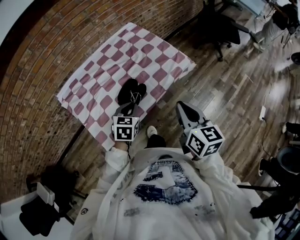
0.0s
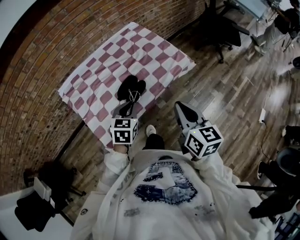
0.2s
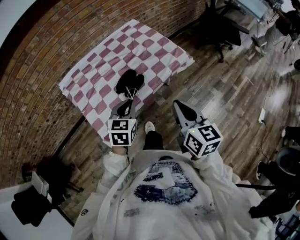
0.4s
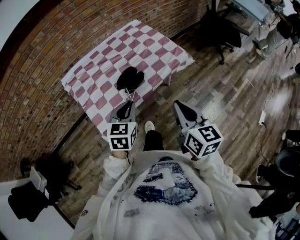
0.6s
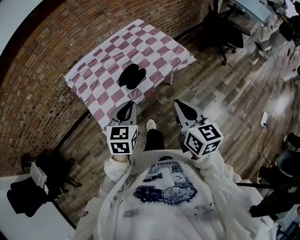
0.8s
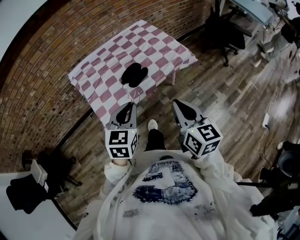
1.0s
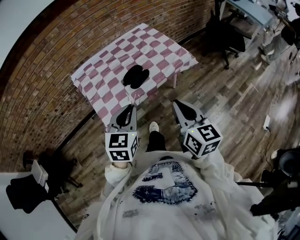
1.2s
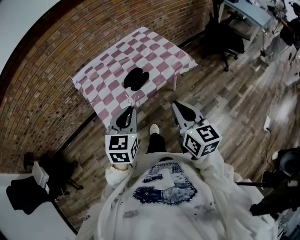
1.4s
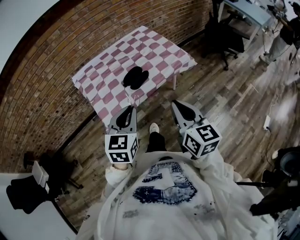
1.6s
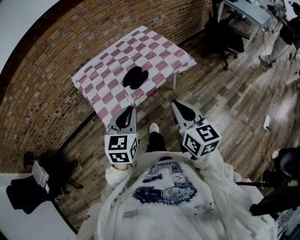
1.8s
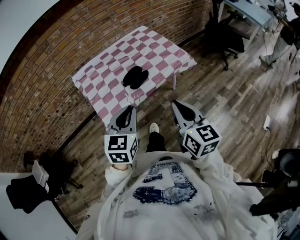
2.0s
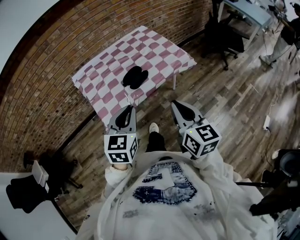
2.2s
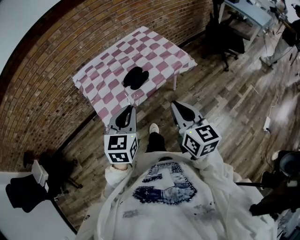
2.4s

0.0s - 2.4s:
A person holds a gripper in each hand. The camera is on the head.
0.0s - 1.2s: The right gripper is displaced backward by about 15 cm. The left gripper moves backward and upward, roughly 25 cm, and changes its angle by some 20 degrees.
1.2s - 2.4s: The grippers stay close to where they were, moving slightly.

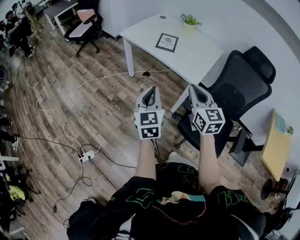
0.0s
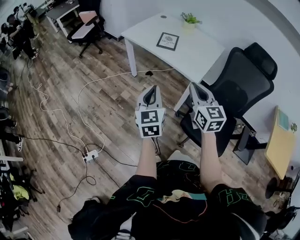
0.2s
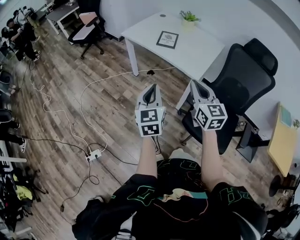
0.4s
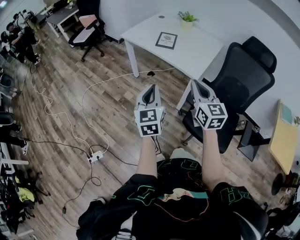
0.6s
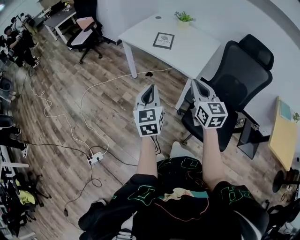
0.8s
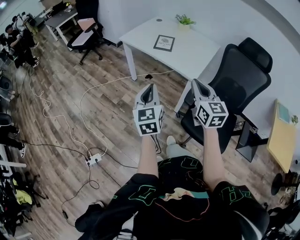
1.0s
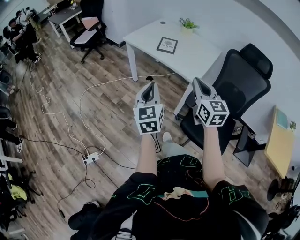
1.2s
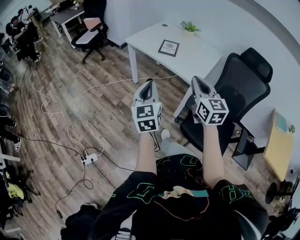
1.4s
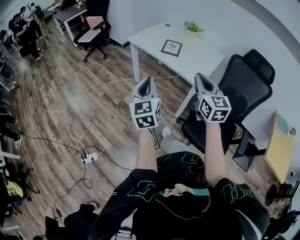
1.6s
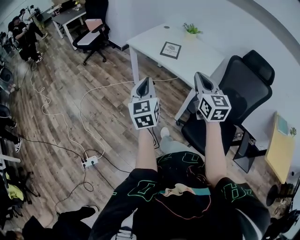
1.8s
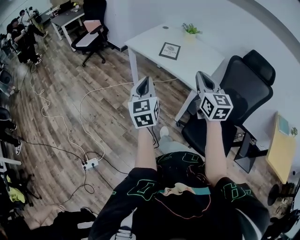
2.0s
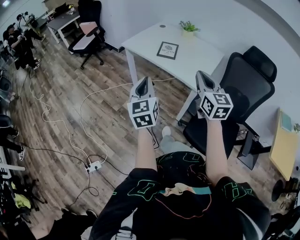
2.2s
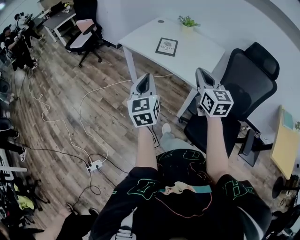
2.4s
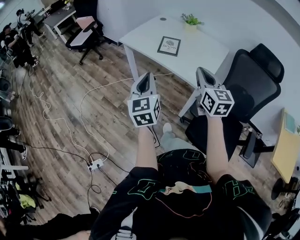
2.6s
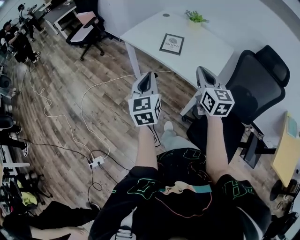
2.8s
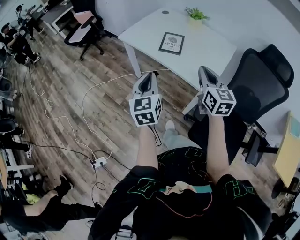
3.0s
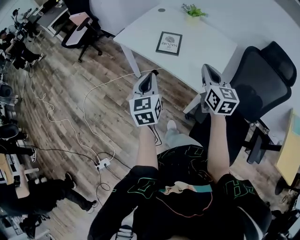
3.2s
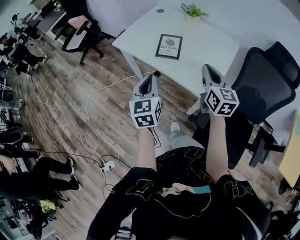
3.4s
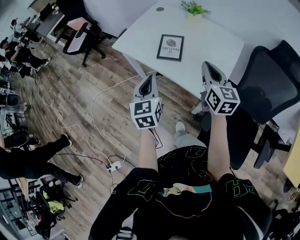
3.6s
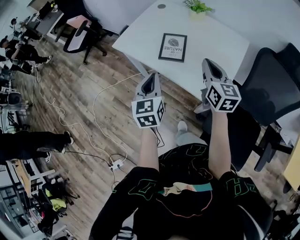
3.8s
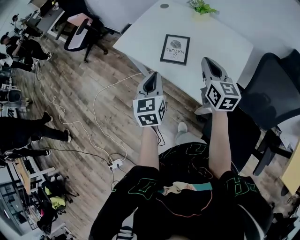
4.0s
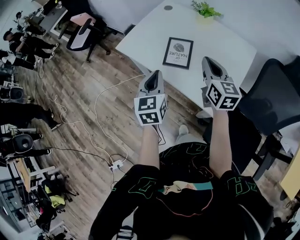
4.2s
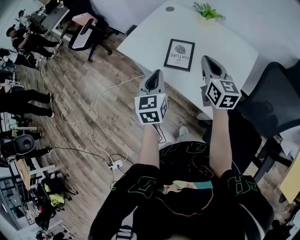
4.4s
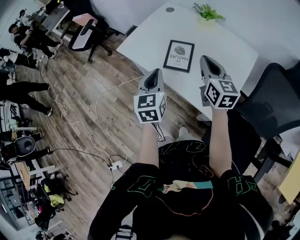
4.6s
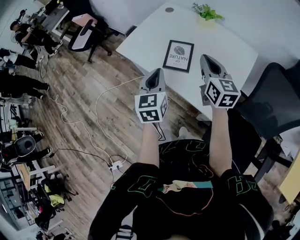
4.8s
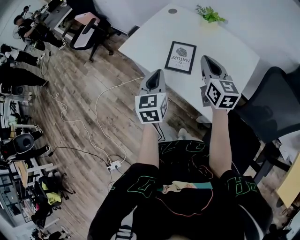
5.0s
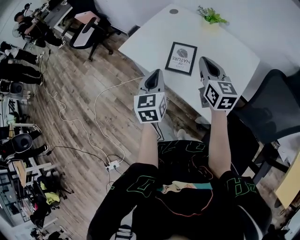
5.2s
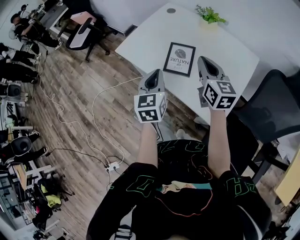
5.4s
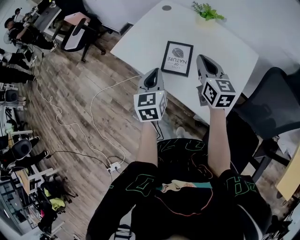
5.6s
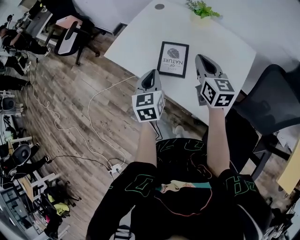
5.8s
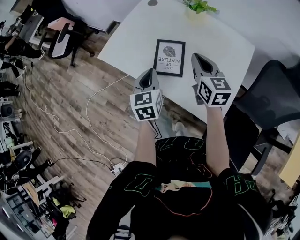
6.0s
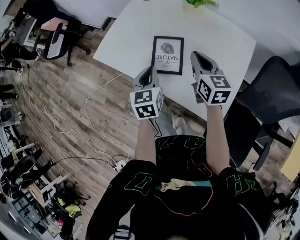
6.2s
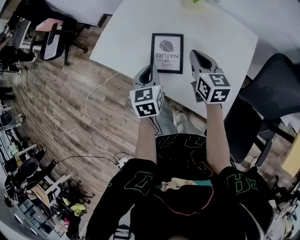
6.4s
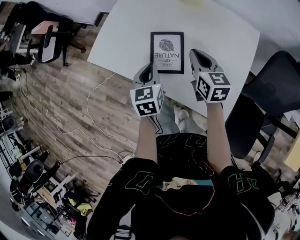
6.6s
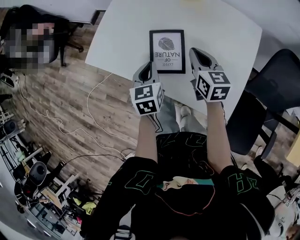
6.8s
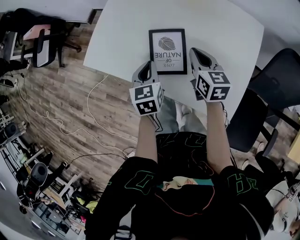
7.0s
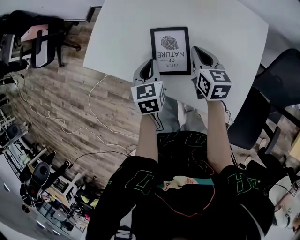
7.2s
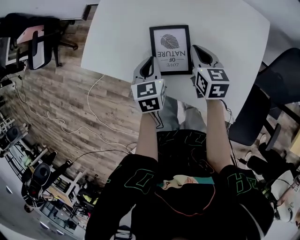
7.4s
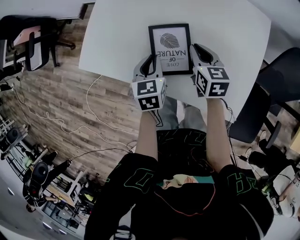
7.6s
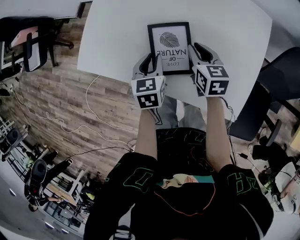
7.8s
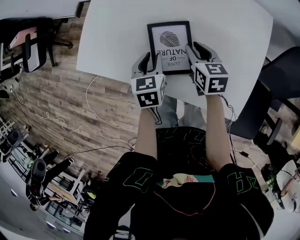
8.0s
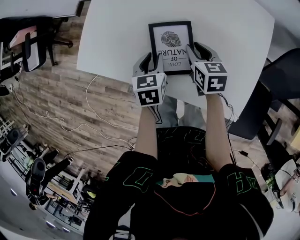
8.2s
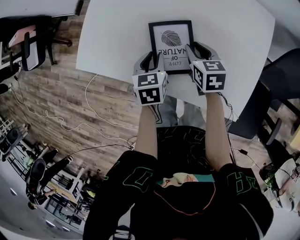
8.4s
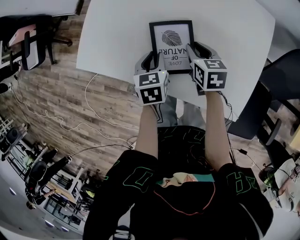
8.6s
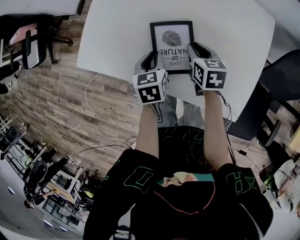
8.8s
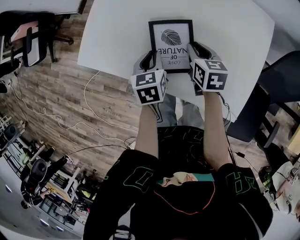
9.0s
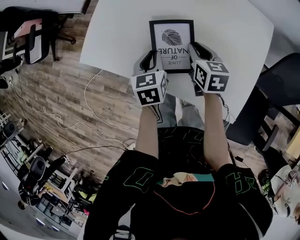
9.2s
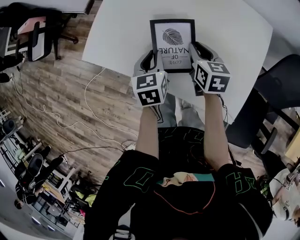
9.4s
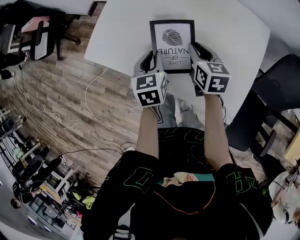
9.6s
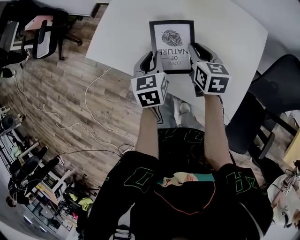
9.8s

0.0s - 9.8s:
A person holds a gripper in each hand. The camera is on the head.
0.0s - 1.4s: The left gripper ends up some 5 cm from where it was, while the right gripper changes place by some 5 cm.
1.4s - 2.8s: The two grippers go approximately 20 cm forward.
2.8s - 4.2s: The grippers both shift forward by approximately 25 cm.
4.2s - 5.6s: The two grippers go roughly 5 cm forward.
5.6s - 7.0s: The grippers both shift downward and forward by roughly 20 cm. The left gripper turns by some 20 degrees, while the right gripper changes its angle by about 20 degrees.
7.0s - 8.4s: The two grippers go roughly 5 cm downward. The left gripper opens up. Meanwhile the right gripper opens.
8.4s - 9.8s: The grippers both shift upward by about 10 cm.

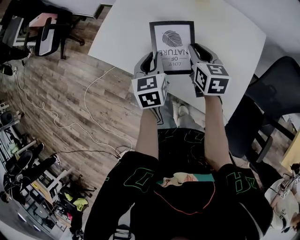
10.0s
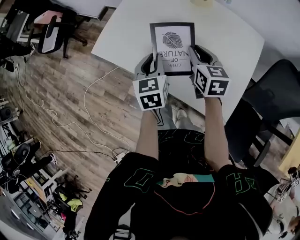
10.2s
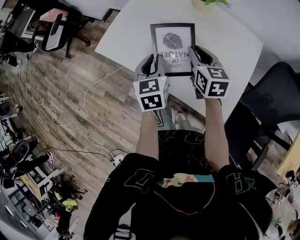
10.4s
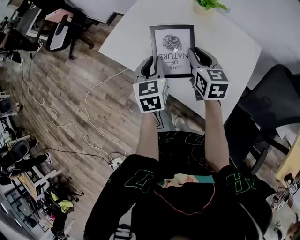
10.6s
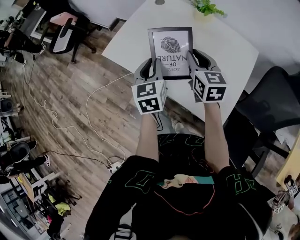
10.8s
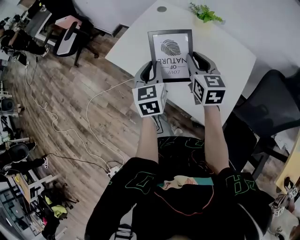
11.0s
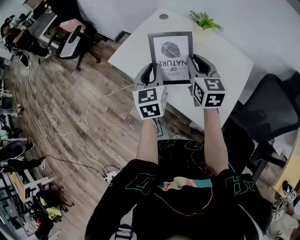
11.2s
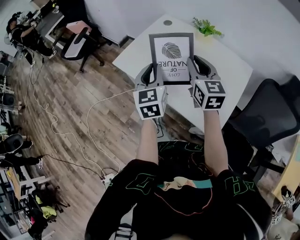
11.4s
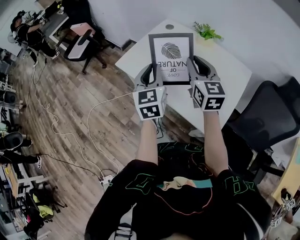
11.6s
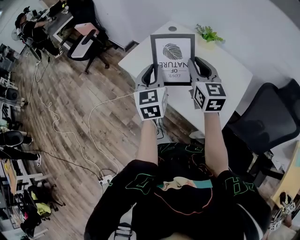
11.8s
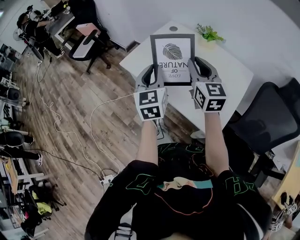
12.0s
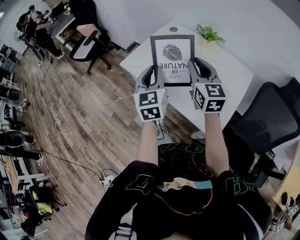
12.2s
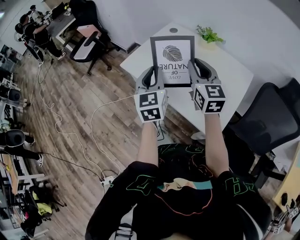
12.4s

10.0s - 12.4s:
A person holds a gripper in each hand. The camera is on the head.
10.0s - 11.2s: The right gripper is displaced upward by about 15 cm, and turns by about 20 degrees; the left gripper travels upward and backward by approximately 15 cm, and turns by roughly 20 degrees.
11.2s - 12.4s: The grippers both shift upward and backward by some 10 cm.

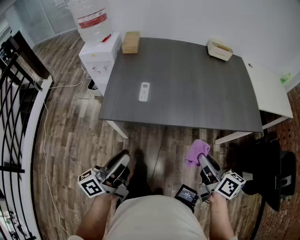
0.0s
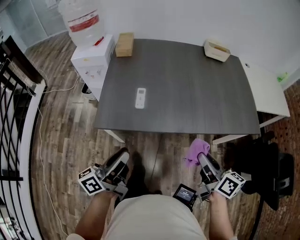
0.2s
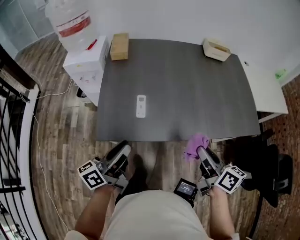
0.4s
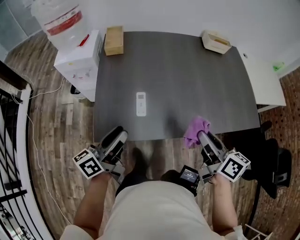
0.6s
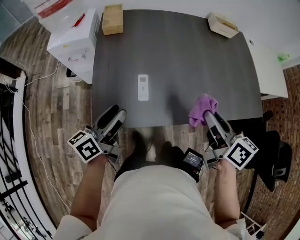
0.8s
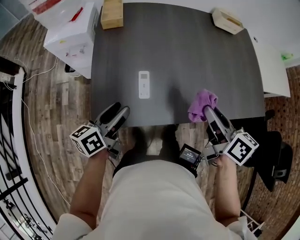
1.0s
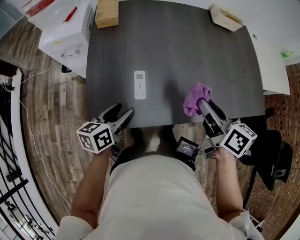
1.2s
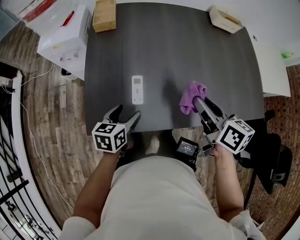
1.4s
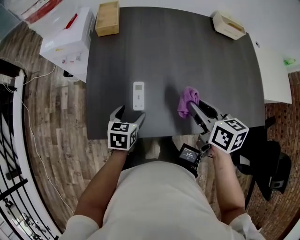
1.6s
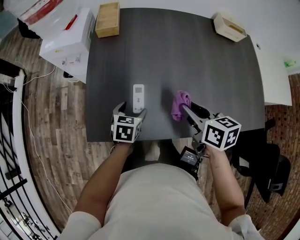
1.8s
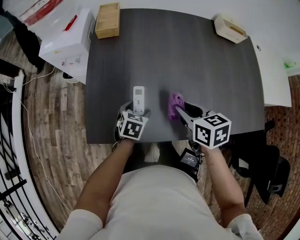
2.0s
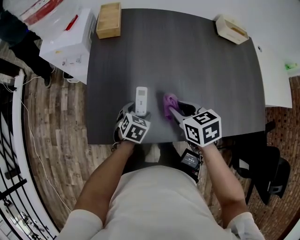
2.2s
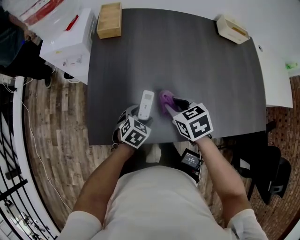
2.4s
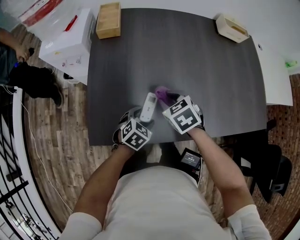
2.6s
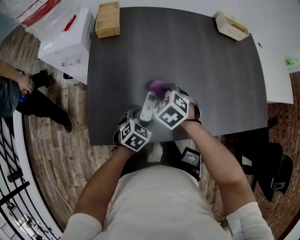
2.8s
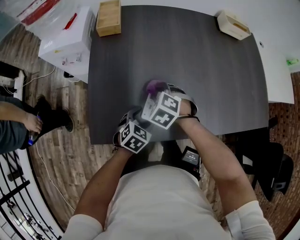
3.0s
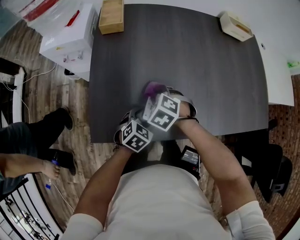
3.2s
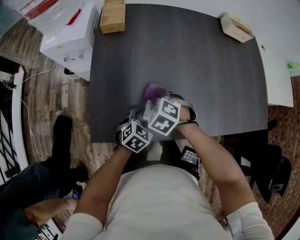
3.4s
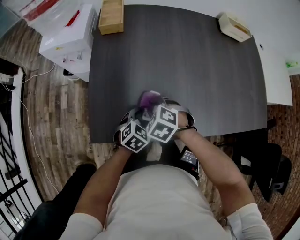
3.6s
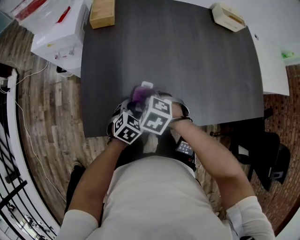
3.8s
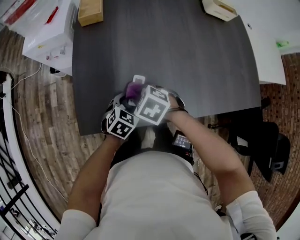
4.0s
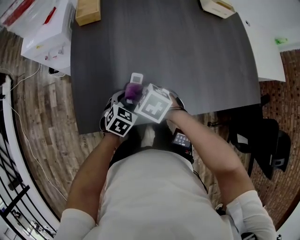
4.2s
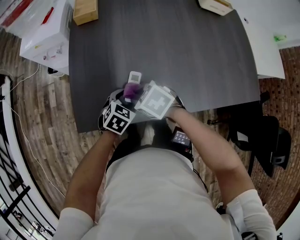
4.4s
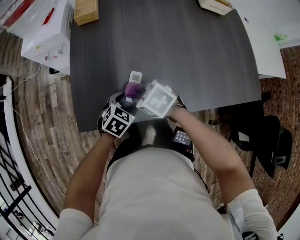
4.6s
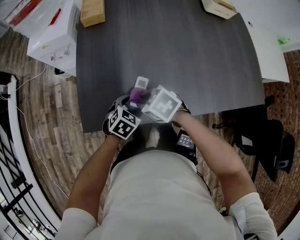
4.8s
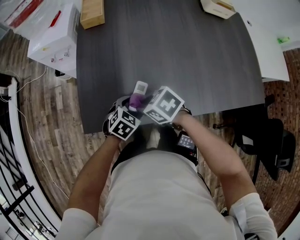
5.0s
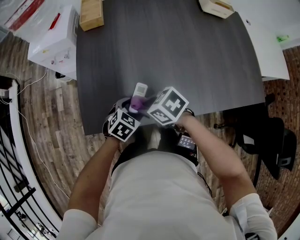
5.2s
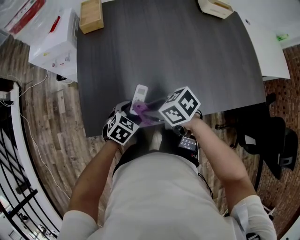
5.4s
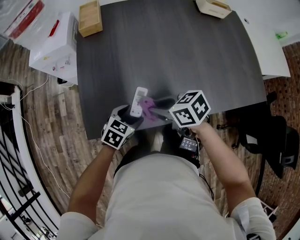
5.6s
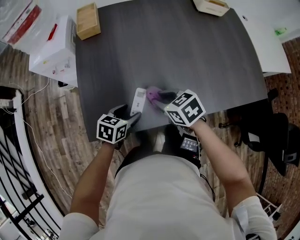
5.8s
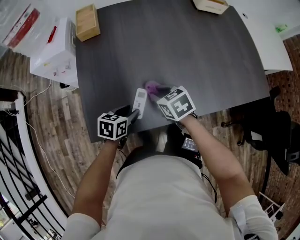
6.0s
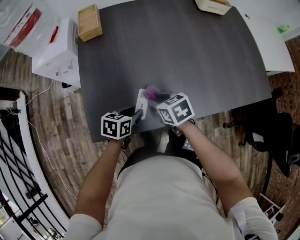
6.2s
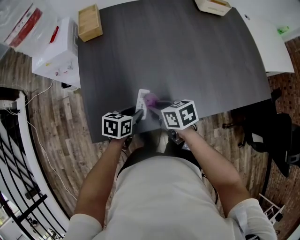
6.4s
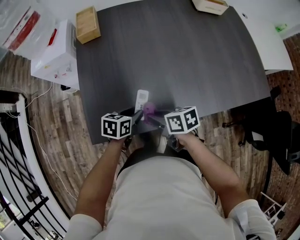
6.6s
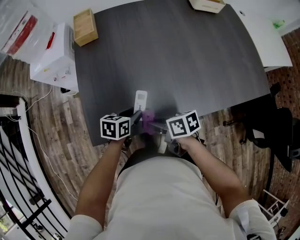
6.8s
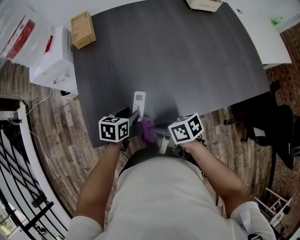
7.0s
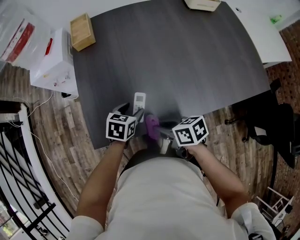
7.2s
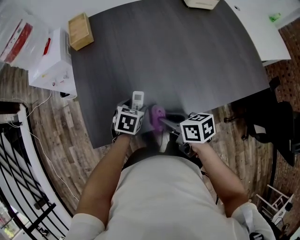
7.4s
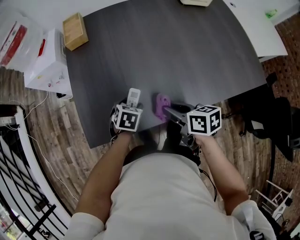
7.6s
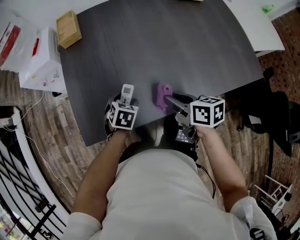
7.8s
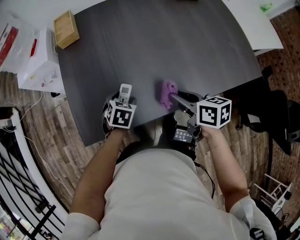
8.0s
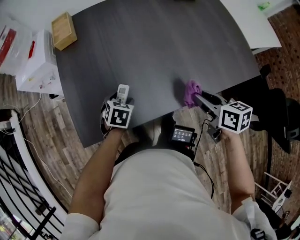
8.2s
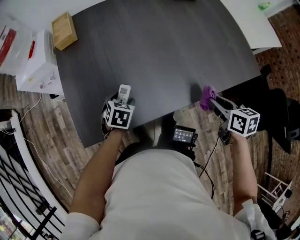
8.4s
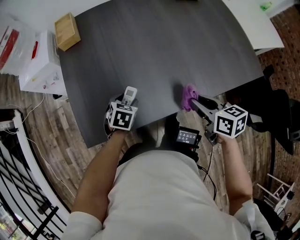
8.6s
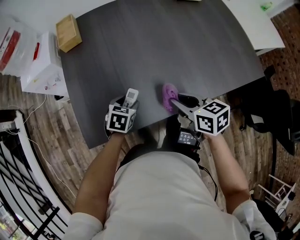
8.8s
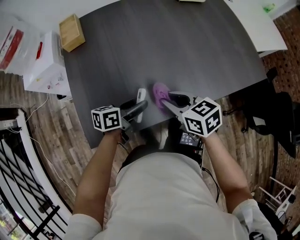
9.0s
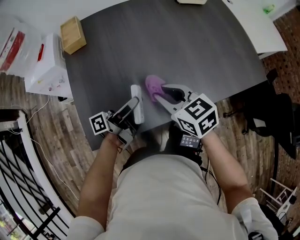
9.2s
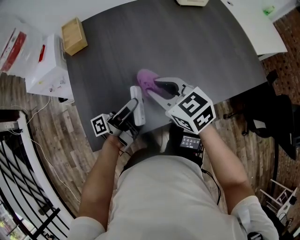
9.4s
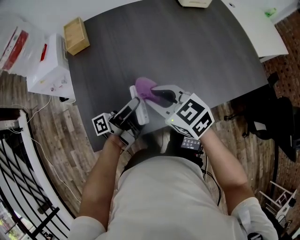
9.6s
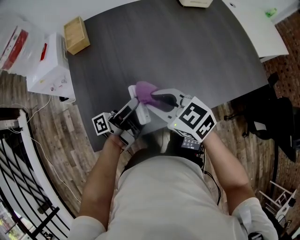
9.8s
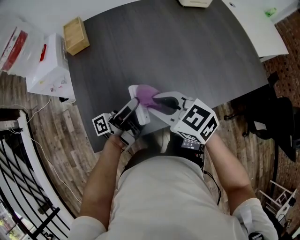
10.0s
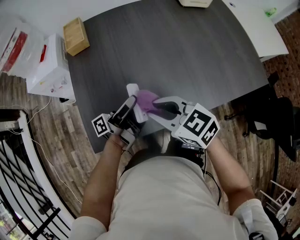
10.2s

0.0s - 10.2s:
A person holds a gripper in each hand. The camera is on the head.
0.0s - 1.4s: The left gripper is displaced forward and downward by approximately 35 cm, tips its fingers downward by some 50 degrees, and opens; the right gripper is displaced forward and to the left by approximately 30 cm.
1.4s - 3.0s: The right gripper shifts approximately 25 cm downward and to the left, and twists roughly 70 degrees counterclockwise, seen from behind, while the left gripper travels downward and to the right by approximately 10 cm, and rotates approximately 40 degrees.
3.0s - 4.4s: The right gripper heads backward, covering approximately 10 cm, and swivels roughly 30 degrees.
4.4s - 5.8s: The left gripper rotates about 20 degrees, while the right gripper ends up about 10 cm from where it was, and rotates roughly 20 degrees.
5.8s - 7.2s: The right gripper goes some 10 cm backward, and changes its angle by approximately 30 degrees.
7.2s - 8.8s: The right gripper shifts roughly 15 cm to the right, upward and forward, and rotates roughly 30 degrees.
8.8s - 10.2s: The right gripper goes some 15 cm to the left and upward, and swivels roughly 30 degrees. The left gripper heads upward, covering about 15 cm, and points its fingers about 80 degrees further upward.
